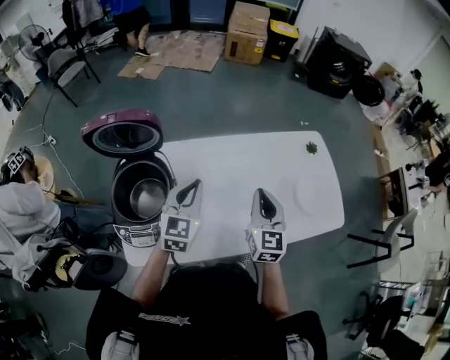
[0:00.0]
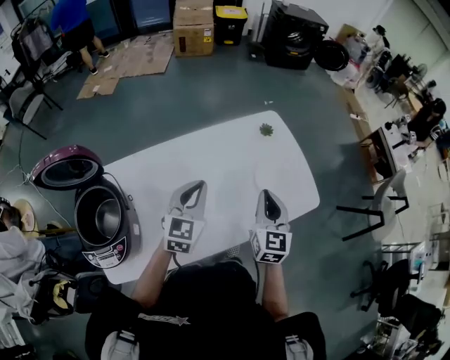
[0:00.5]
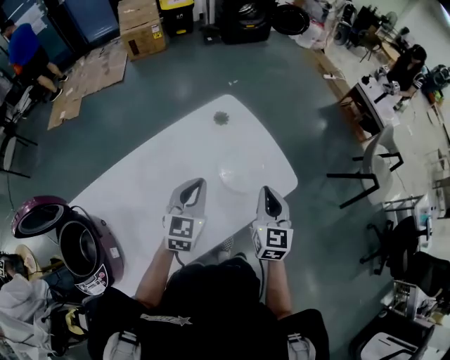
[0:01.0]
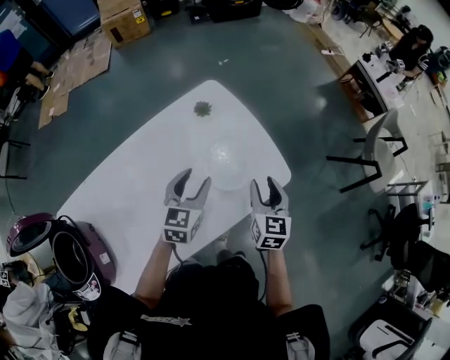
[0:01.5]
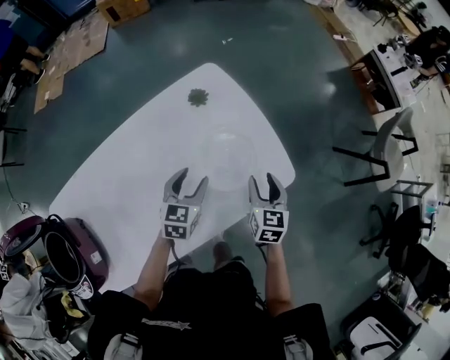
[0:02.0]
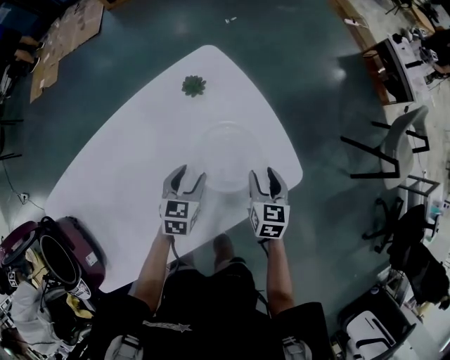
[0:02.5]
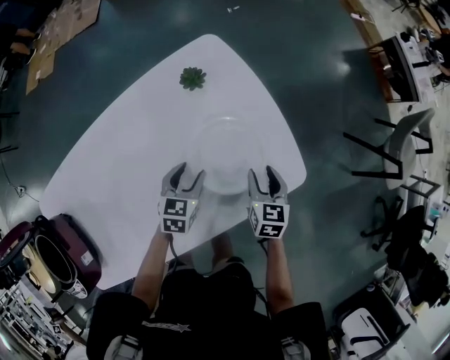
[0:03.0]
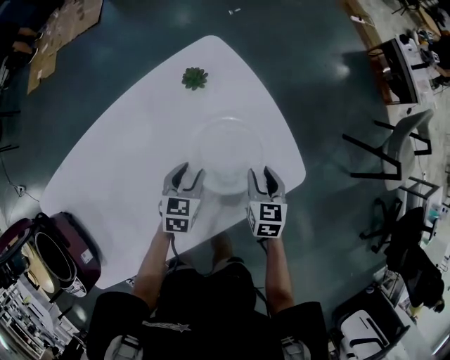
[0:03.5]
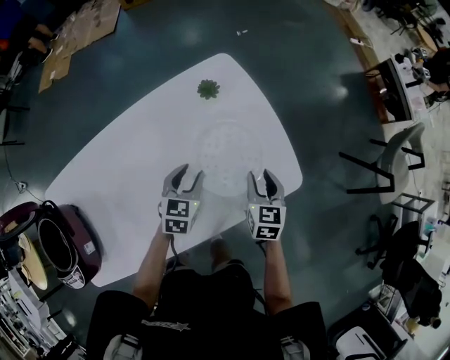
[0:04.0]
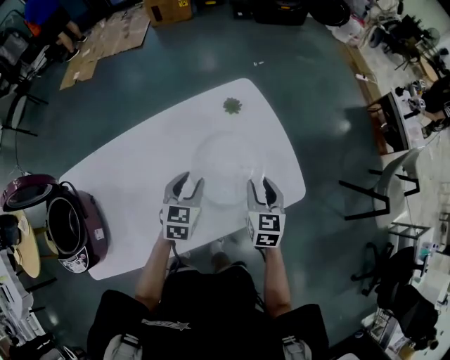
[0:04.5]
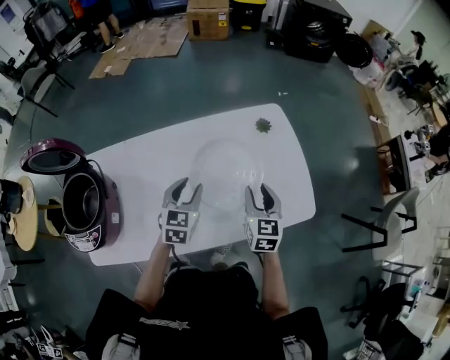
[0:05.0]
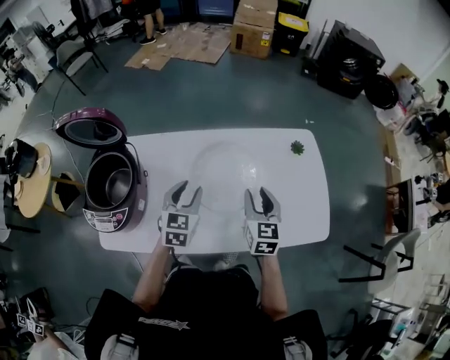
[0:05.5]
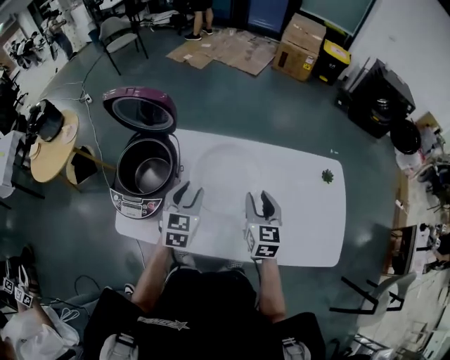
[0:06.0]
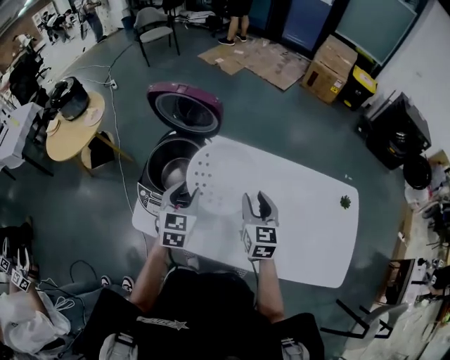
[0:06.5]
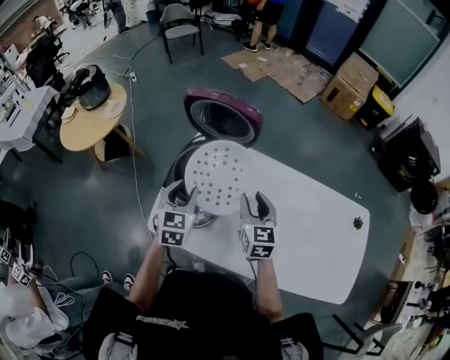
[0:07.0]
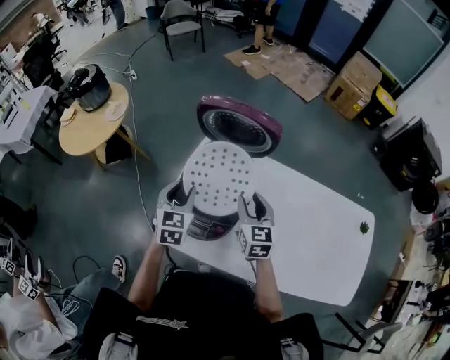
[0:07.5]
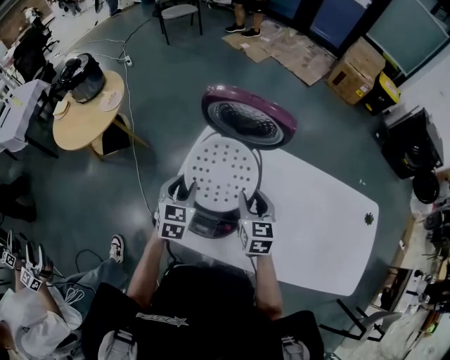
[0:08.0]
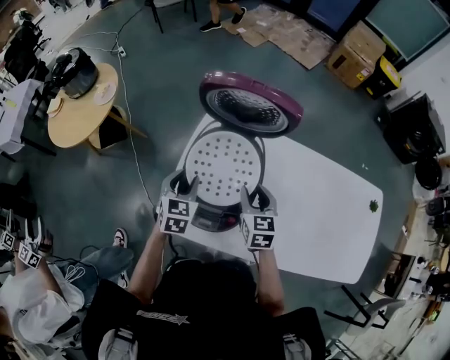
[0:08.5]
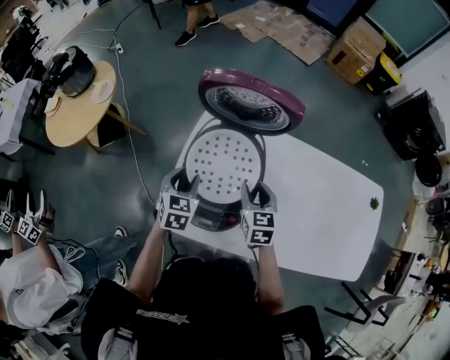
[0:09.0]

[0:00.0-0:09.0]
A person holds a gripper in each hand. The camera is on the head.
0:00.0 to 0:02.0: Both grippers are carried about 50 cm. The left gripper changes its angle by approximately 30 degrees, and opens its fingers; the right gripper rotates approximately 40 degrees, and opens up.
0:02.0 to 0:04.5: Both grippers move to the left, about 10 cm. The left gripper reaches about 10 cm downward, then returns. The right gripper travels downward and back again, roughly 10 cm each way.
0:04.5 to 0:07.0: The pair of grippers is taken some 60 cm. The left gripper turns by approximately 50 degrees. Meanwhile the right gripper changes its angle by approximately 50 degrees.
0:07.0 to 0:09.0: The two grippers go approximately 10 cm downward and to the left.

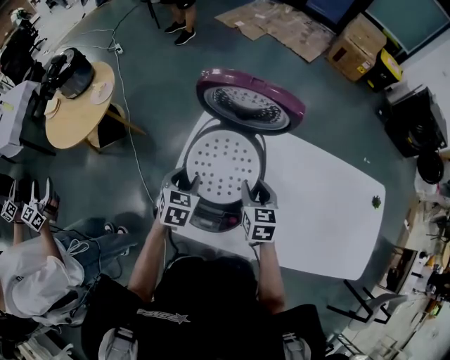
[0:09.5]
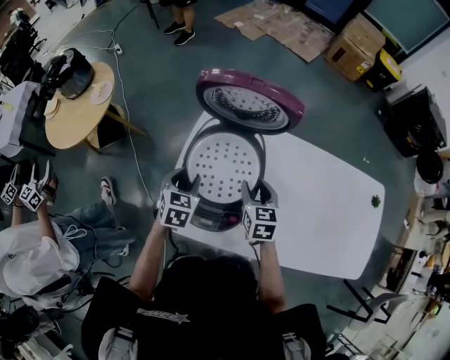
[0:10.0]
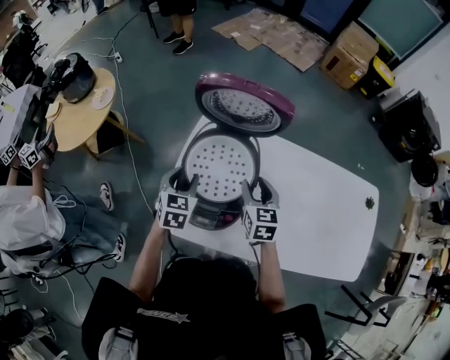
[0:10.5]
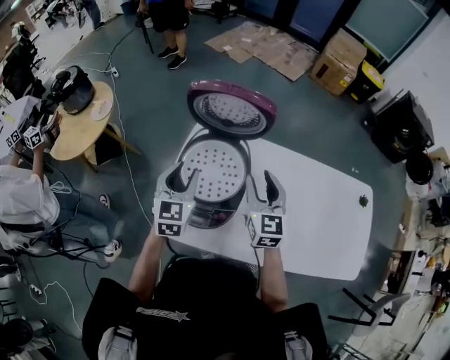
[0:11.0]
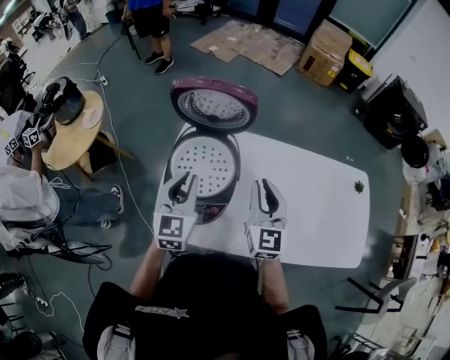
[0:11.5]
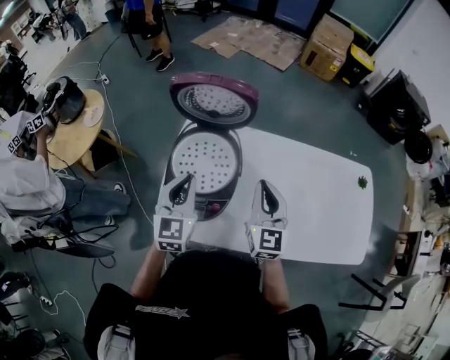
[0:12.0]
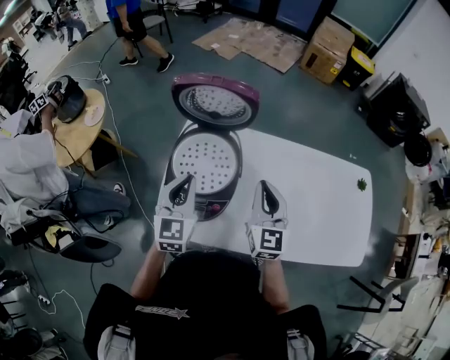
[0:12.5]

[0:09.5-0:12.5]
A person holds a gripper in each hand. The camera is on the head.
0:09.5 to 0:11.0: Both grippers move upward, approximately 15 cm. The right gripper swivels approximately 30 degrees; the left gripper turns by about 30 degrees.
0:11.0 to 0:12.5: Both grippers travel together backward, roughly 5 cm. The left gripper closes its fingers, while the right gripper closes up.

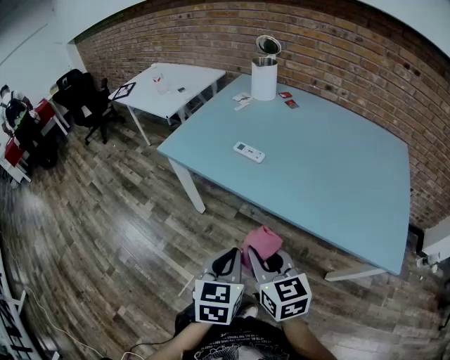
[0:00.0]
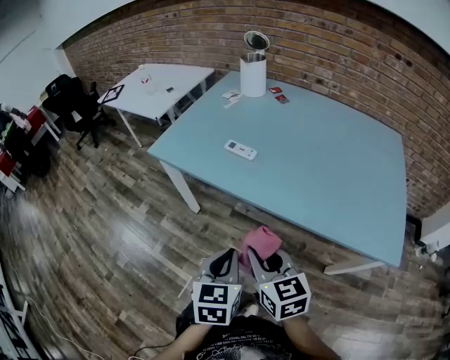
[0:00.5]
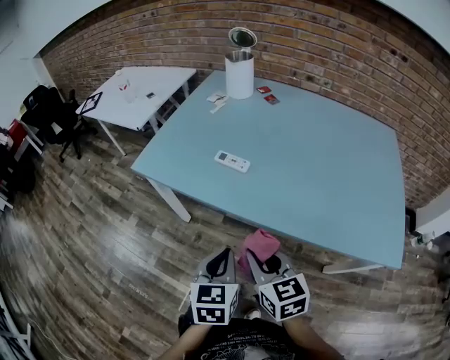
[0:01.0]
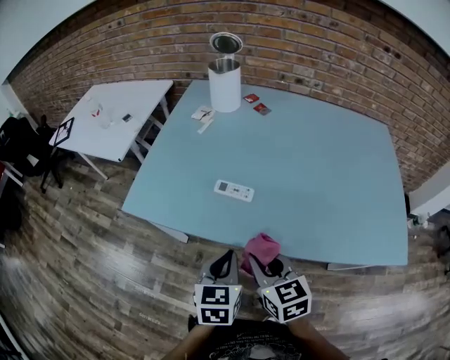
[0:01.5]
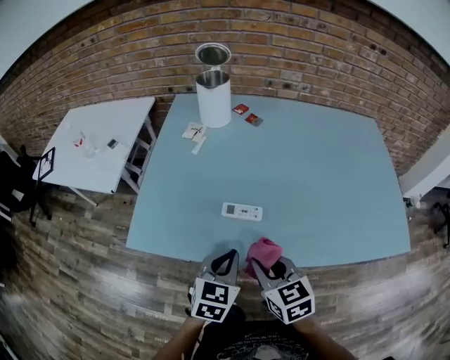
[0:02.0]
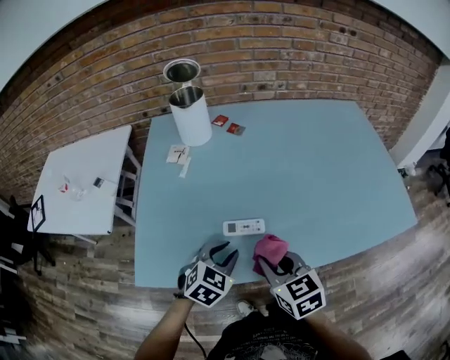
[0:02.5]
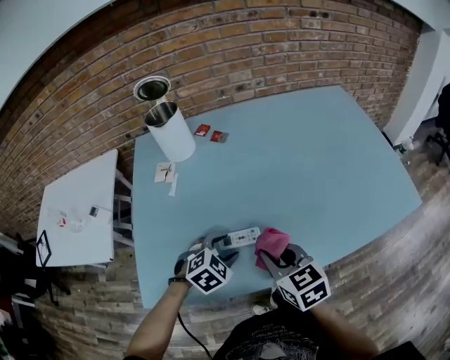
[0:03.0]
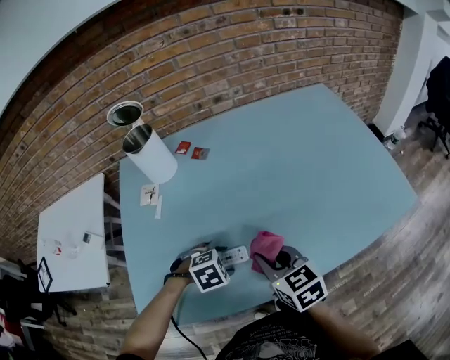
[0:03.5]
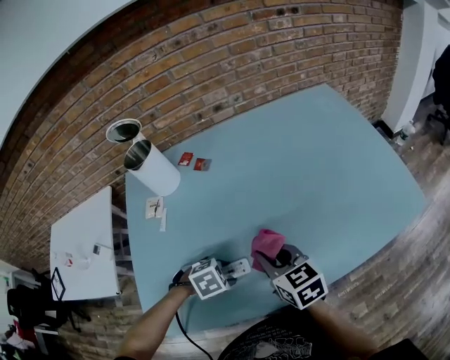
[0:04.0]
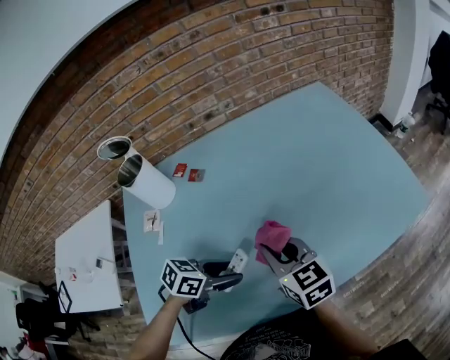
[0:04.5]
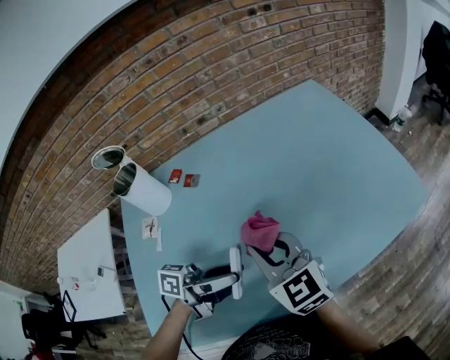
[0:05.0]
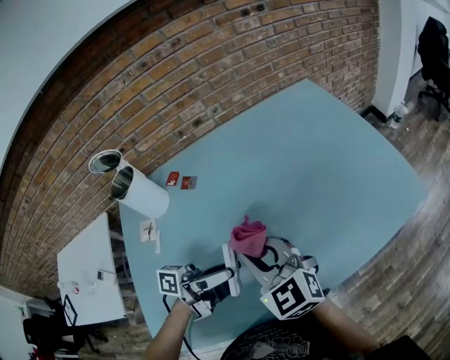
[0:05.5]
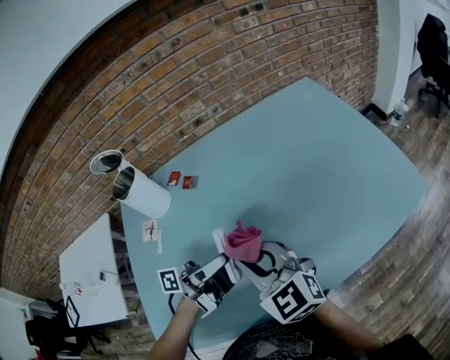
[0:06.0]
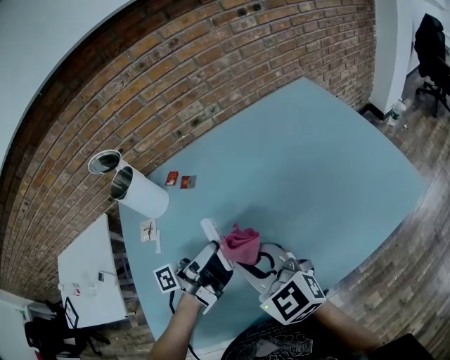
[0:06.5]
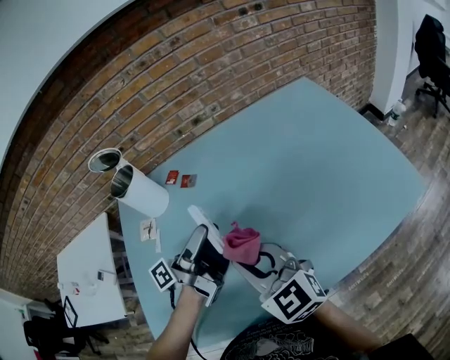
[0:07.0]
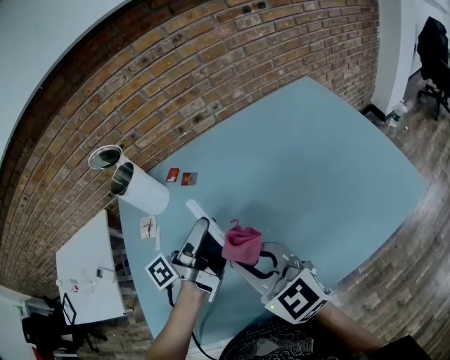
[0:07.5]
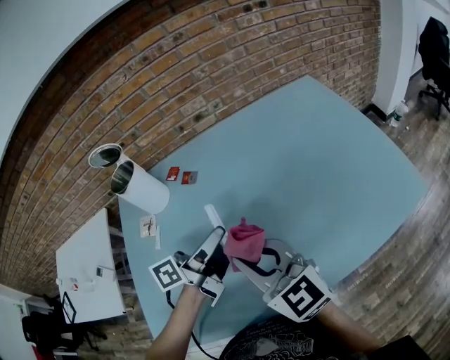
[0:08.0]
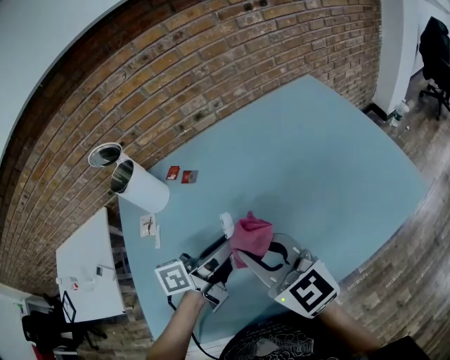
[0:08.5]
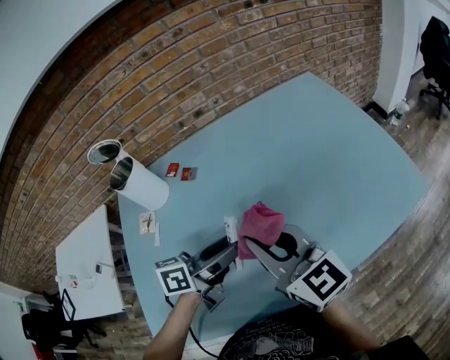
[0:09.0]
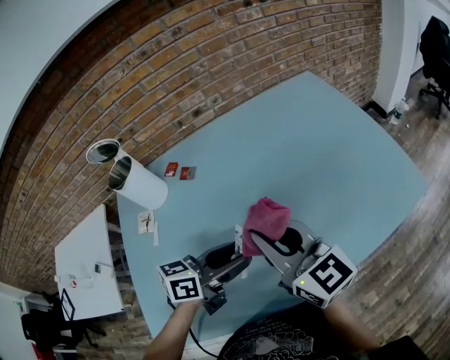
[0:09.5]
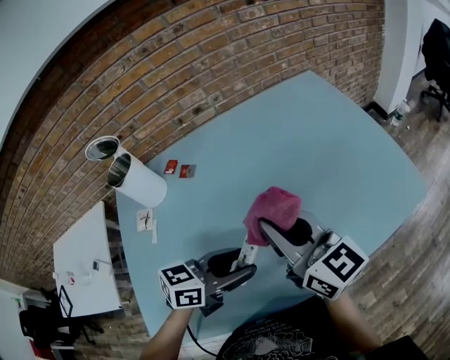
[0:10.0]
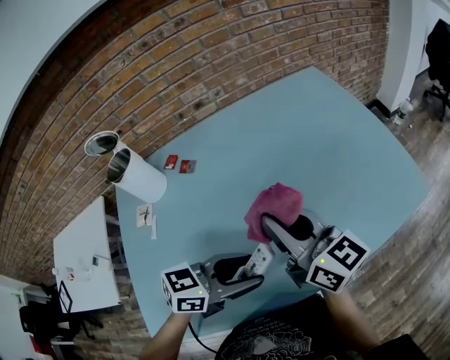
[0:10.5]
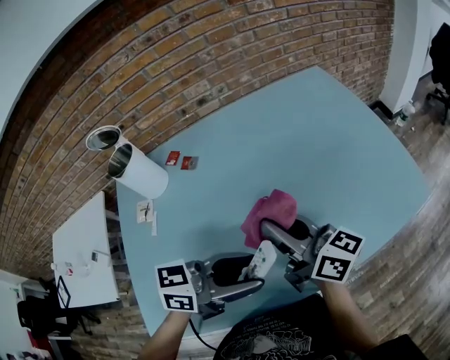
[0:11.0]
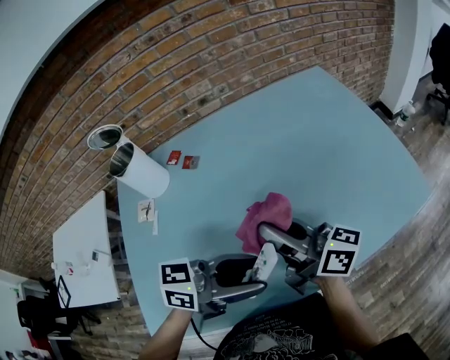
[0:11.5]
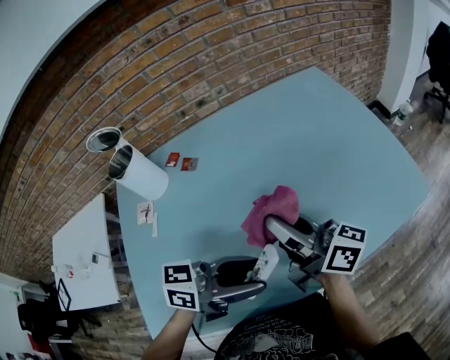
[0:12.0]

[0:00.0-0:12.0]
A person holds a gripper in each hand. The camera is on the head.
0:00.0 to 0:02.0: The left gripper ends up roughly 30 cm from where it was, and turns by about 40 degrees. Meanwhile the right gripper moves some 25 cm, and swivels roughly 20 degrees.
0:02.0 to 0:04.0: The left gripper changes place by roughly 15 cm, angles its fingers downward, by about 40 degrees, and opens, while the right gripper shifts by roughly 20 cm.
0:04.0 to 0:06.0: The right gripper is displaced upward by approximately 10 cm, and changes its angle by approximately 30 degrees. Meanwhile the left gripper shifts about 20 cm upward, and tips its fingers upward by some 90 degrees.
0:06.0 to 0:08.0: The left gripper heads forward, covering about 5 cm, and rotates about 20 degrees.
0:08.0 to 0:10.0: The right gripper shifts approximately 10 cm to the right and forward, and changes its angle by about 20 degrees. Meanwhile the left gripper is displaced backward and to the right by roughly 10 cm, and swivels roughly 50 degrees.
0:10.0 to 0:12.0: The left gripper moves some 5 cm, and changes its angle by some 20 degrees; the right gripper changes its angle by roughly 40 degrees.

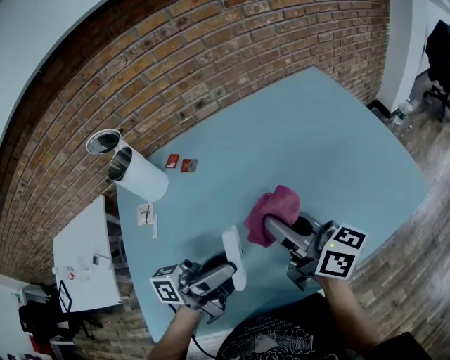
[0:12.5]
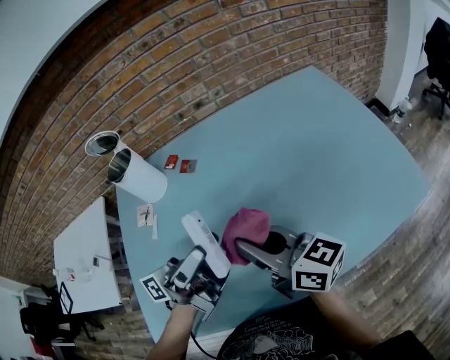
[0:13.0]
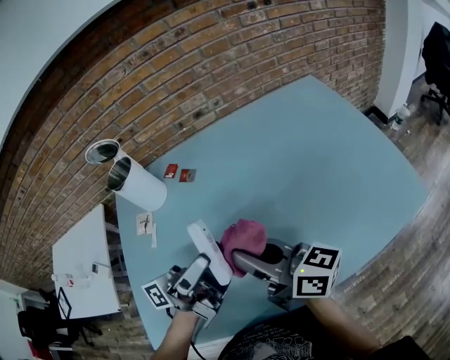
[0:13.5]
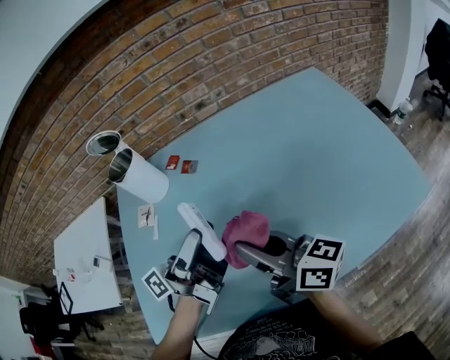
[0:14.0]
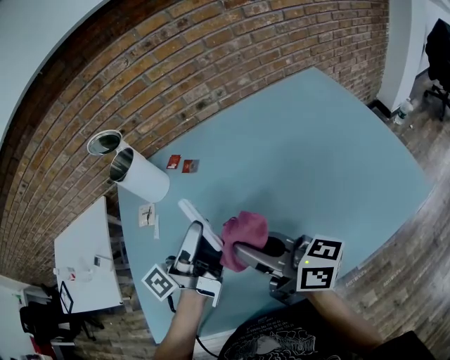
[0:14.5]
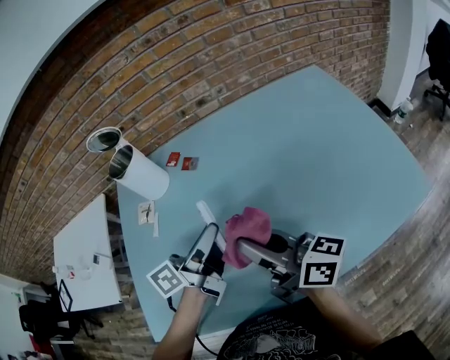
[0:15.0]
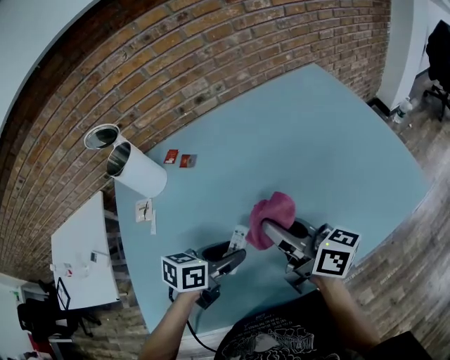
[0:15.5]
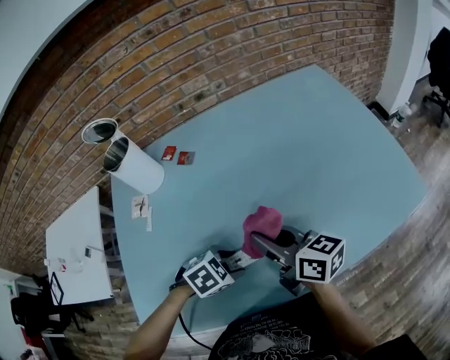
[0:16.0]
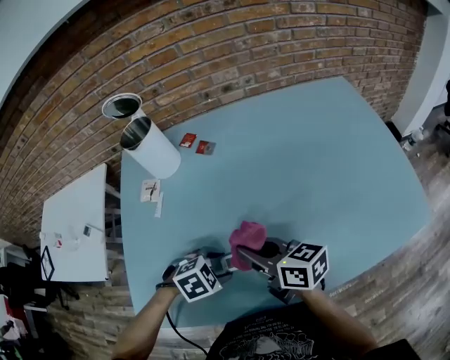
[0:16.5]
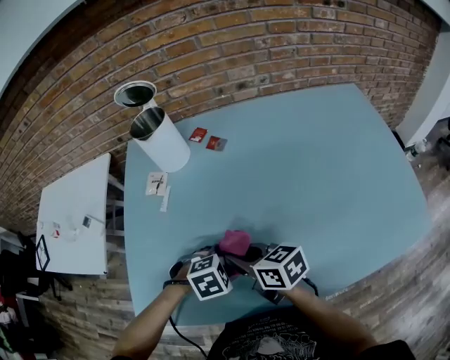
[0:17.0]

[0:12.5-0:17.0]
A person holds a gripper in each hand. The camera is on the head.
0:12.5 to 0:14.5: The right gripper goes roughly 10 cm to the left. Meanwhile the left gripper travels forward and to the left by about 10 cm, and turns by about 30 degrees.
0:14.5 to 0:17.0: The left gripper travels downward by about 25 cm, and tips its fingers downward by approximately 90 degrees, while the right gripper shifts roughly 15 cm downward, and tilts its fingers about 30 degrees downward.
